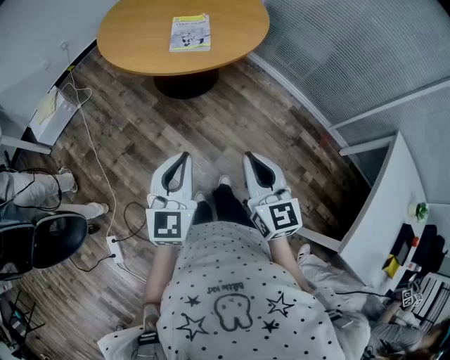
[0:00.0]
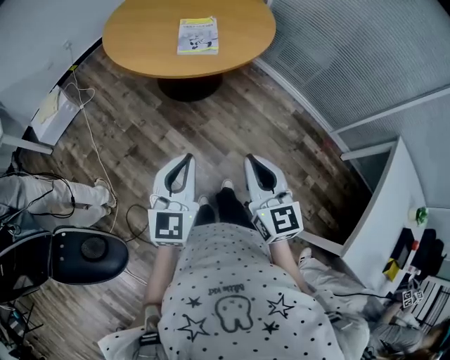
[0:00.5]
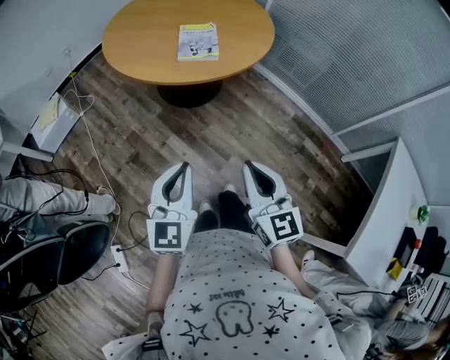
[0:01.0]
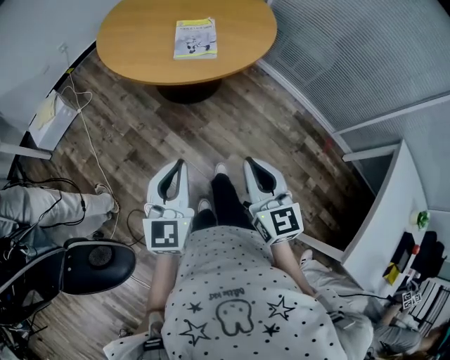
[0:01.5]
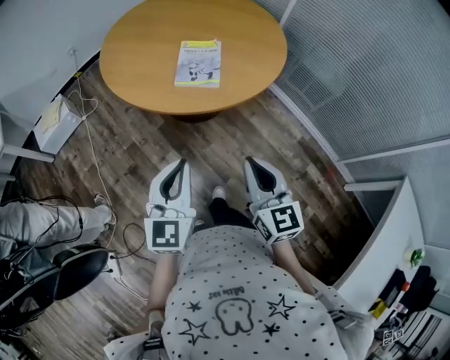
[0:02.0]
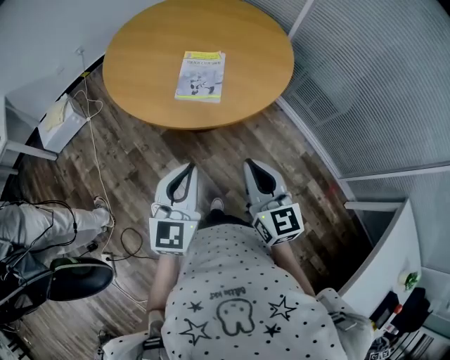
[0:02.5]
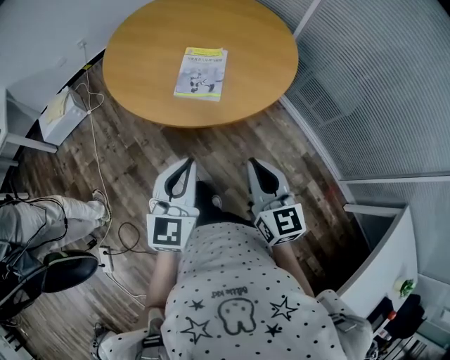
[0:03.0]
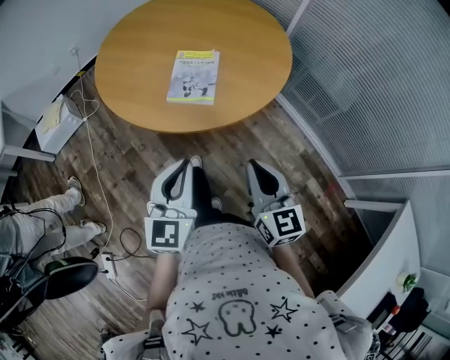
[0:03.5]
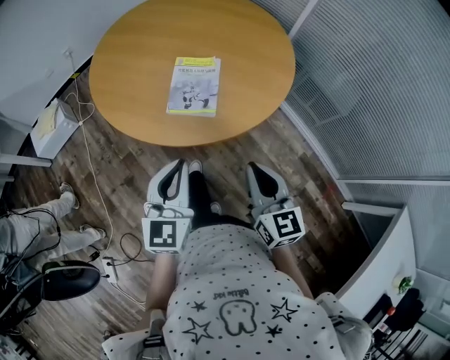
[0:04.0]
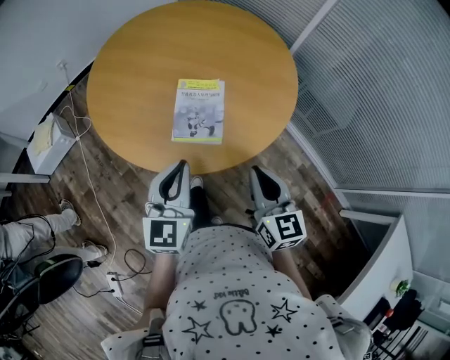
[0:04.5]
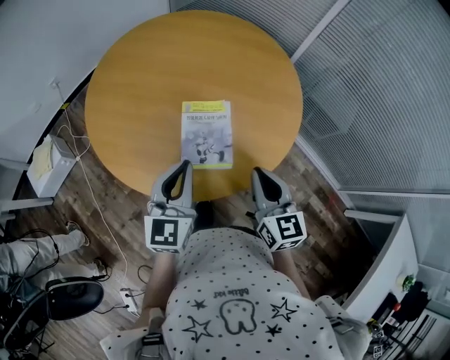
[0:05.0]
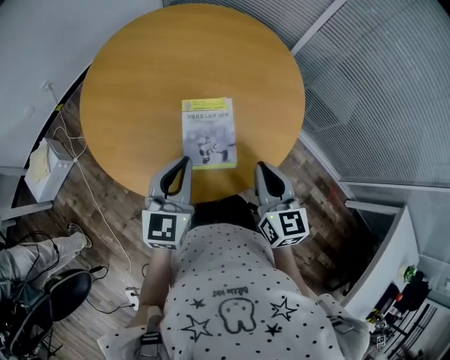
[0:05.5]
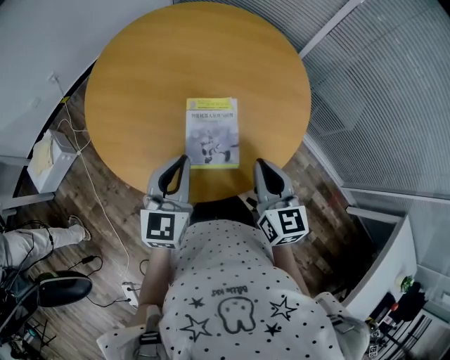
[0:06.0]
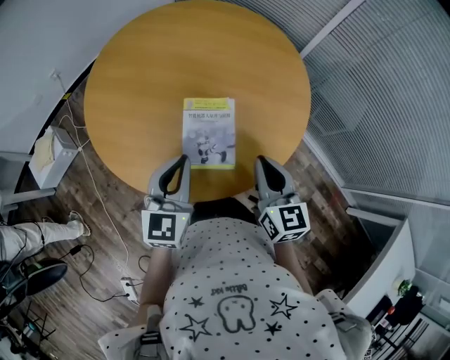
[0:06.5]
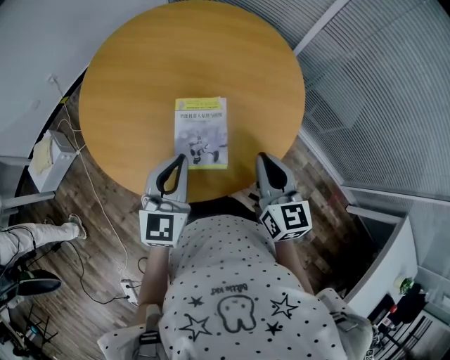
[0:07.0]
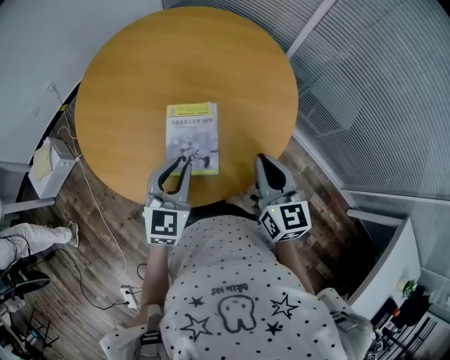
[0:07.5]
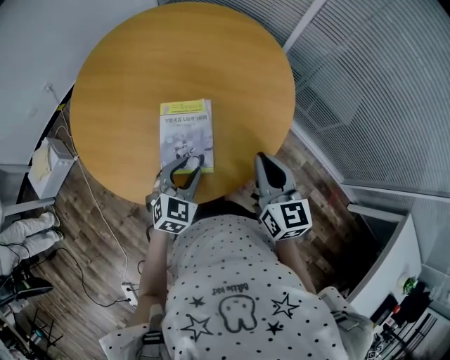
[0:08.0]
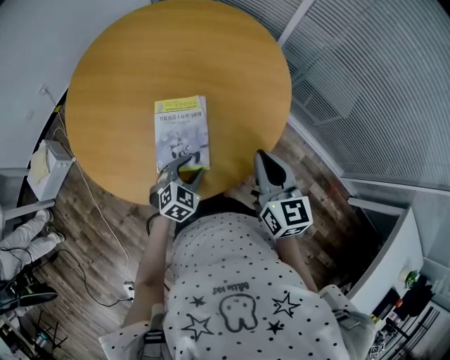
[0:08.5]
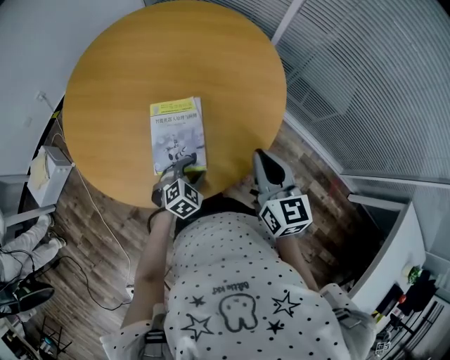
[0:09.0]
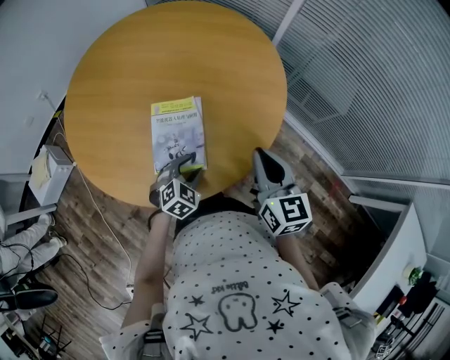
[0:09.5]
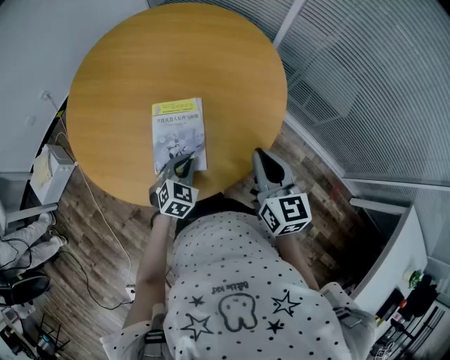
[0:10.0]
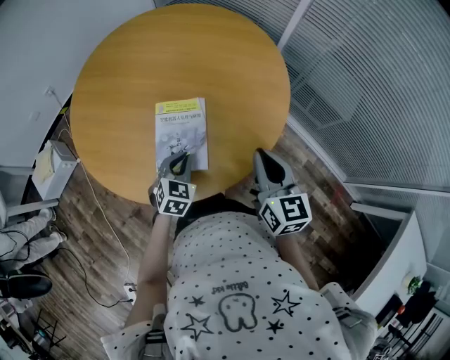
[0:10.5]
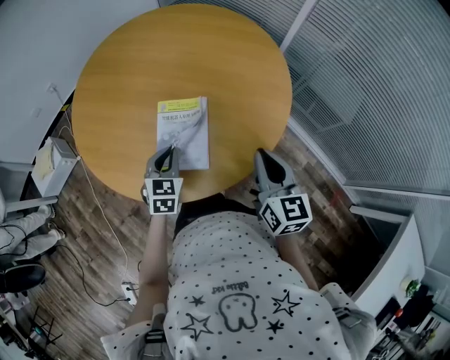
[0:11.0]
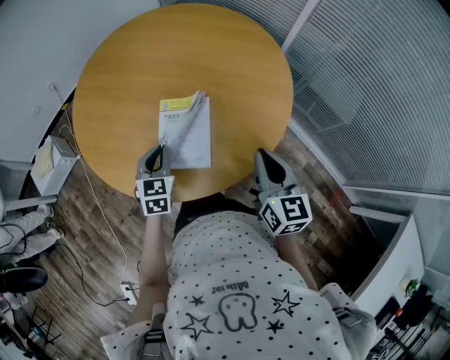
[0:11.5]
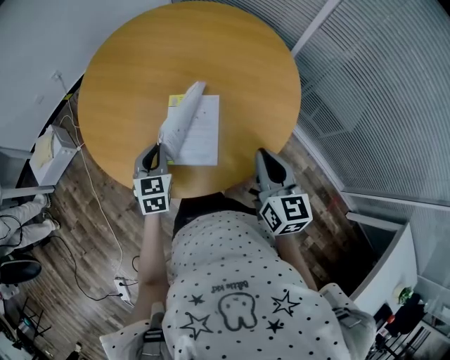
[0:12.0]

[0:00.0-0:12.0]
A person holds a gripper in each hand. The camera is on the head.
0:00.0 to 0:02.0: The two grippers go about 20 cm forward.
0:02.0 to 0:04.0: The grippers both shift forward by roughly 15 cm.
0:04.0 to 0:06.0: The left gripper moves forward and to the left, about 25 cm; the right gripper is displaced forward by about 20 cm.
0:06.0 to 0:08.0: The left gripper goes roughly 15 cm downward and to the right, changes its angle by some 30 degrees, and opens up, while the right gripper is displaced to the right by some 10 cm.
0:08.0 to 0:10.0: The left gripper shifts approximately 5 cm downward, and closes.
0:10.0 to 0:12.0: The left gripper heads to the left and upward, covering some 15 cm, and swivels roughly 40 degrees.

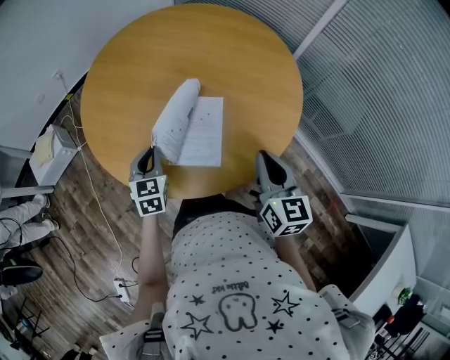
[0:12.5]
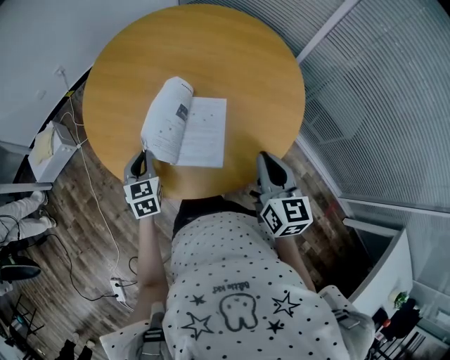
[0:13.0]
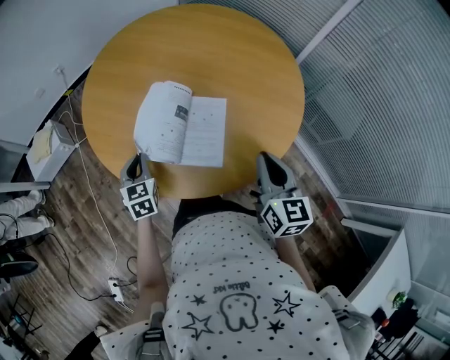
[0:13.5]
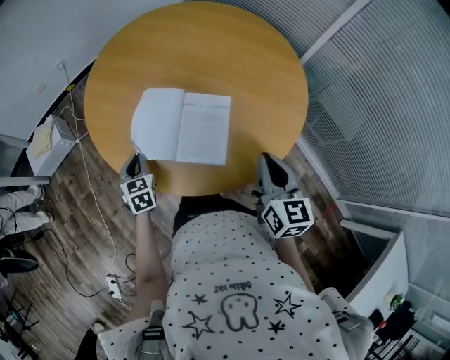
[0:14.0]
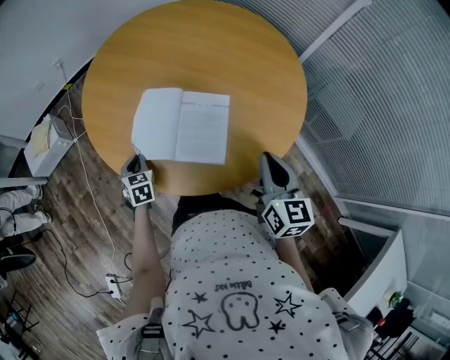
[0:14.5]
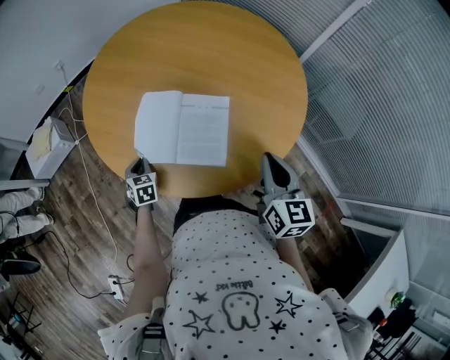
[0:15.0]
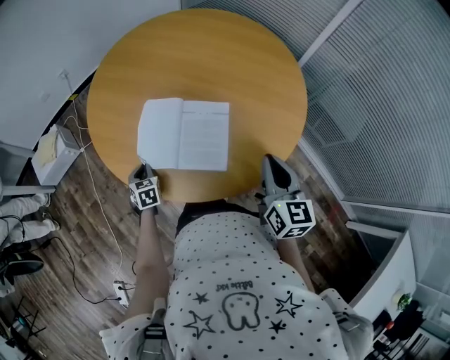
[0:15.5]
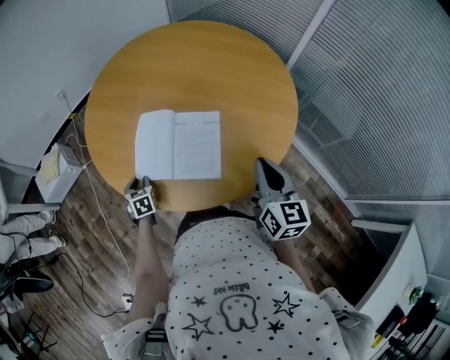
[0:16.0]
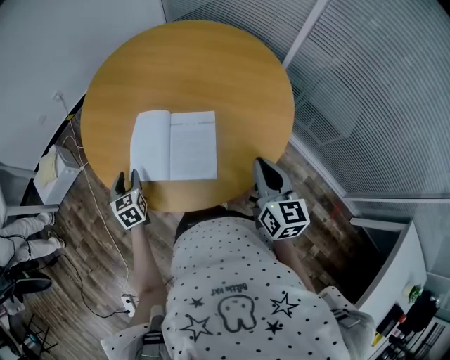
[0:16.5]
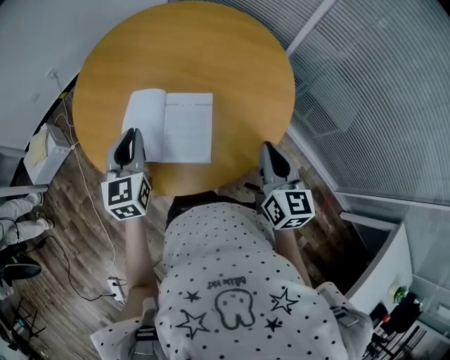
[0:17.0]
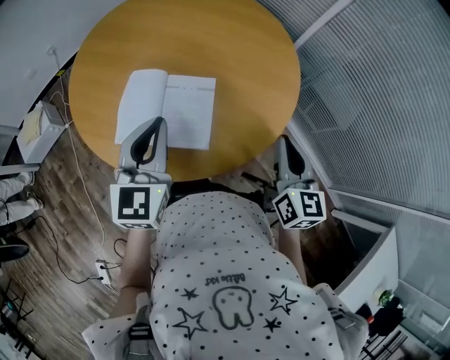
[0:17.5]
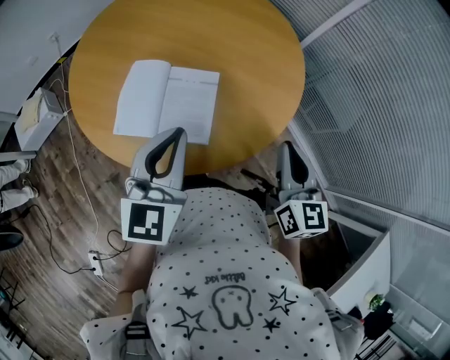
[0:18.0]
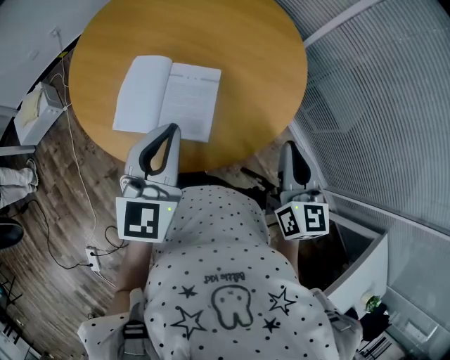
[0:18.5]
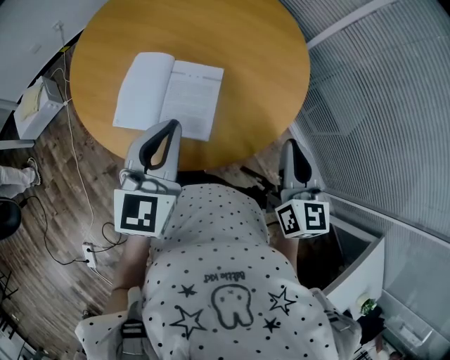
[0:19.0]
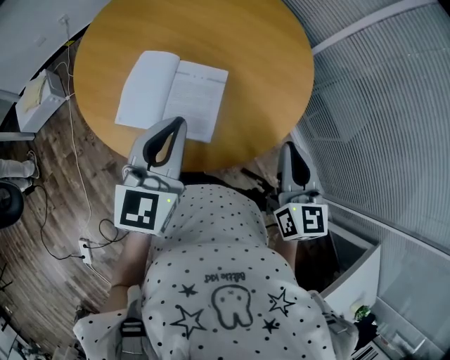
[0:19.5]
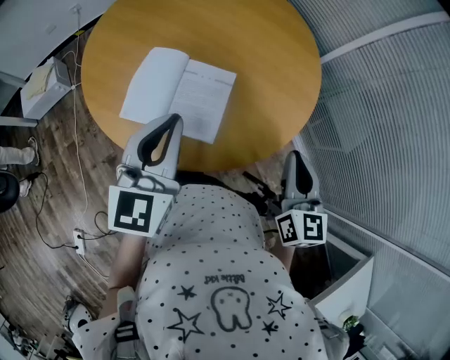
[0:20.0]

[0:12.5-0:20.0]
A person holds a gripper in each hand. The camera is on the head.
0:12.5 to 0:14.5: The left gripper travels downward and to the left by approximately 15 cm.
0:14.5 to 0:16.5: The left gripper heads upward, covering approximately 5 cm, and opens.
0:16.5 to 0:18.0: The right gripper ends up some 5 cm from where it was. The left gripper goes some 30 cm to the right and upward, rotates about 40 degrees, and closes its fingers.
0:18.0 to 0:20.0: The grippers make only small movements.

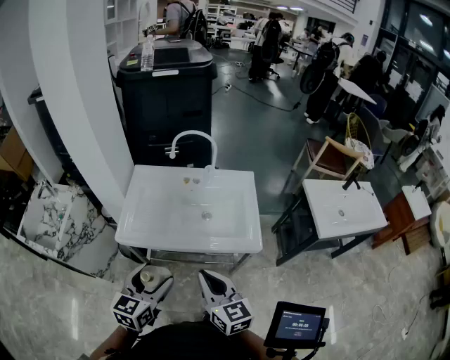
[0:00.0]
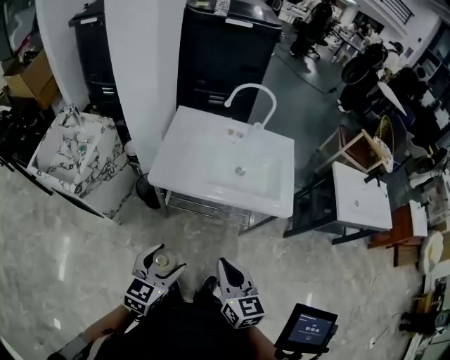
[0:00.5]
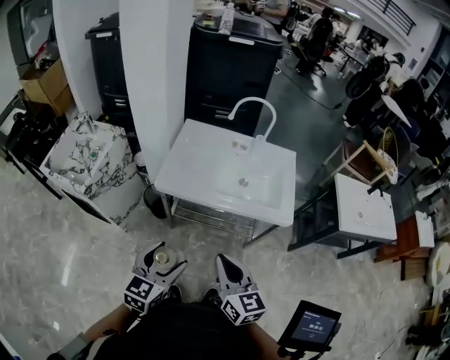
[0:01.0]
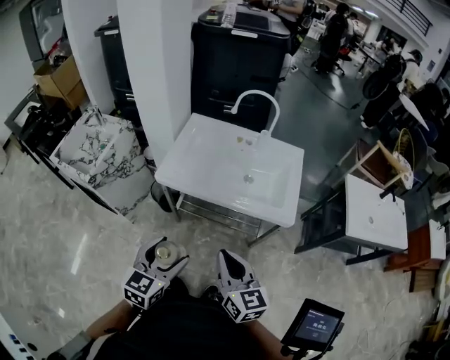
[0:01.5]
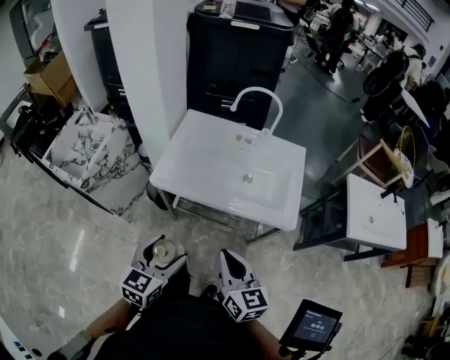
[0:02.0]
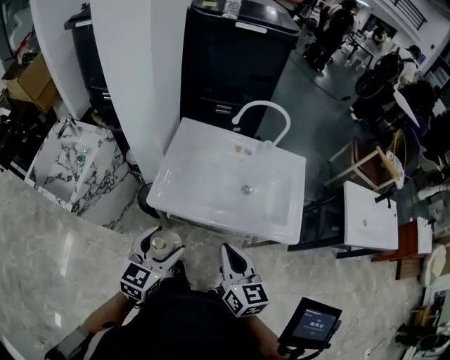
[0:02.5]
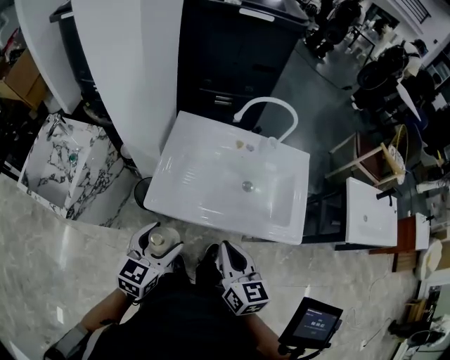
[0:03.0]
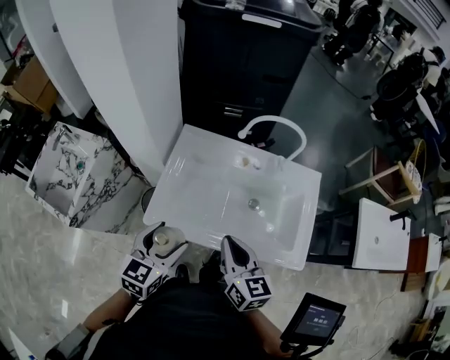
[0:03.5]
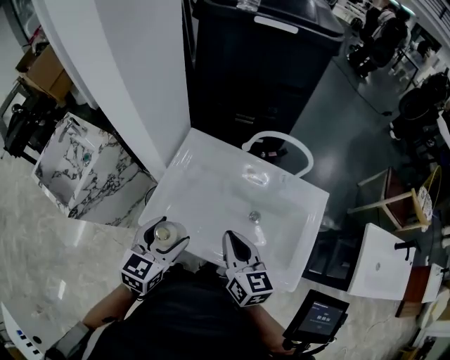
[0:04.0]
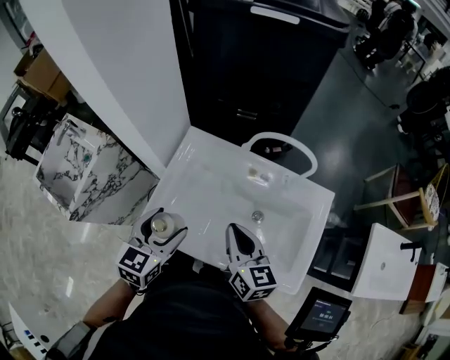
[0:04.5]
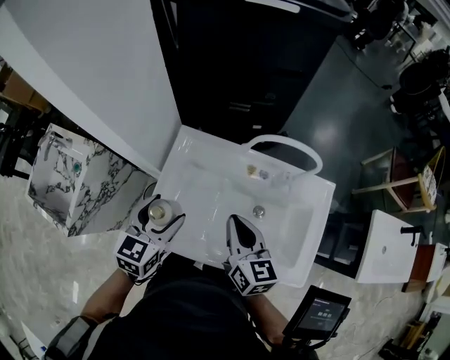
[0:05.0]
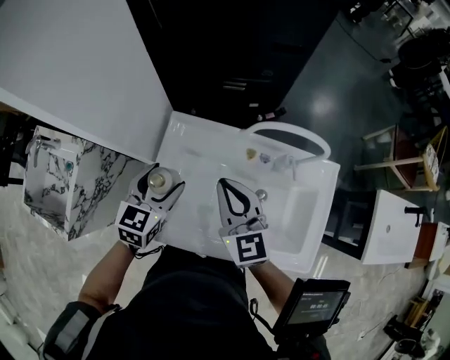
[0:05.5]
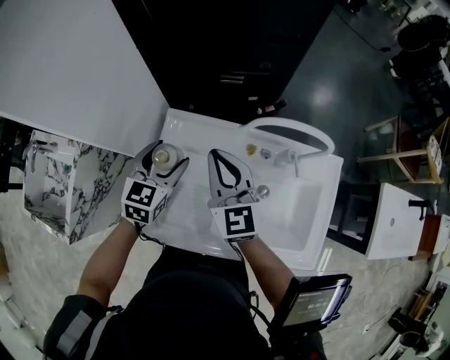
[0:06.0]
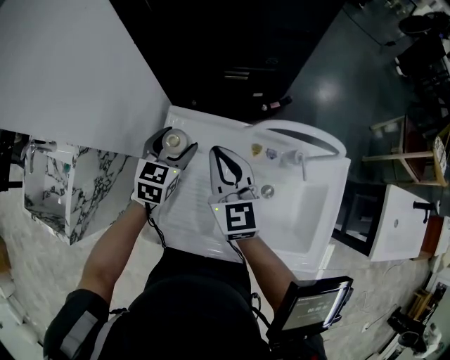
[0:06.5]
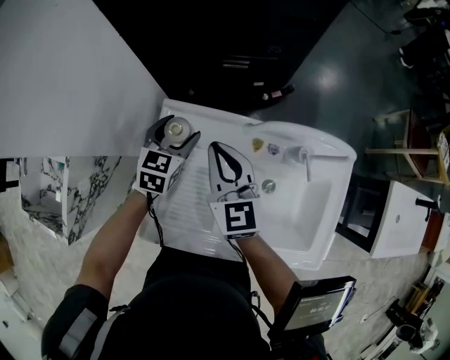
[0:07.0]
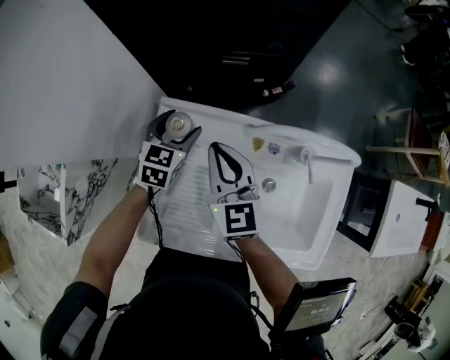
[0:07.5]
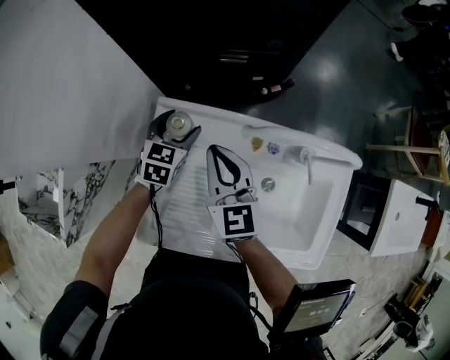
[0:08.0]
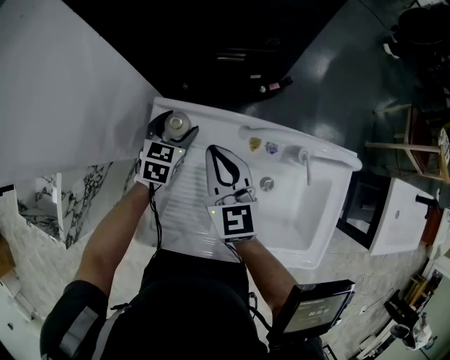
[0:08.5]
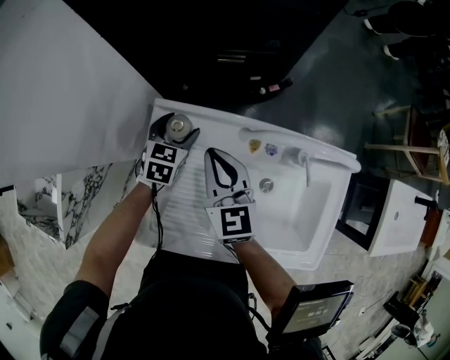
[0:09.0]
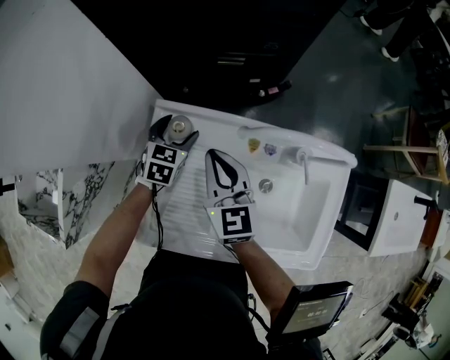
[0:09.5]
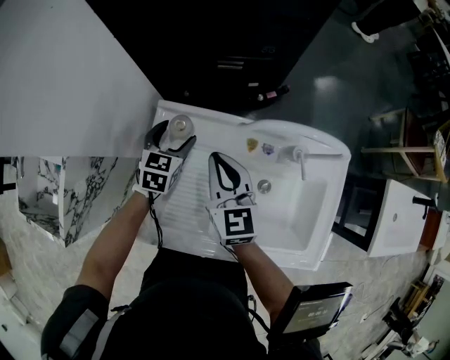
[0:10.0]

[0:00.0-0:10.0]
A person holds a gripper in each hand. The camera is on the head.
0:00.0 to 0:02.0: The left gripper is displaced to the left by roughly 5 cm.
0:02.0 to 0:04.0: The grippers both shift forward by some 30 cm.
0:04.0 to 0:06.0: The two grippers go approximately 25 cm forward. The right gripper changes its angle by some 30 degrees.
0:06.0 to 0:08.0: The right gripper is displaced downward by approximately 5 cm, while the left gripper moves downward and forward, roughly 15 cm.
0:08.0 to 0:10.0: The grippers stay close to where they were, moving slightly.
